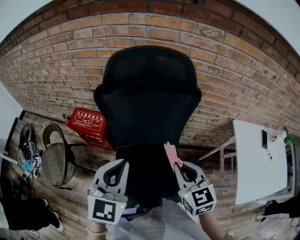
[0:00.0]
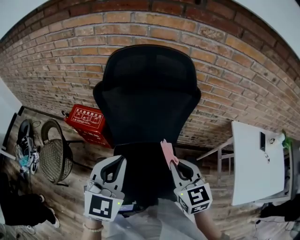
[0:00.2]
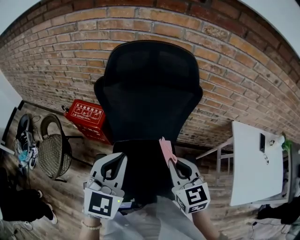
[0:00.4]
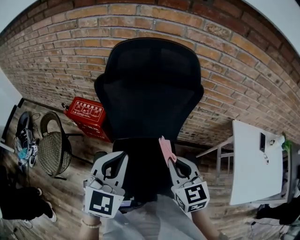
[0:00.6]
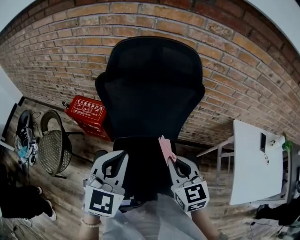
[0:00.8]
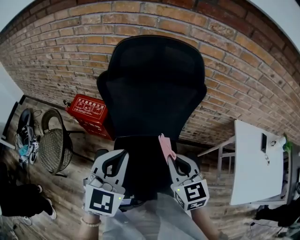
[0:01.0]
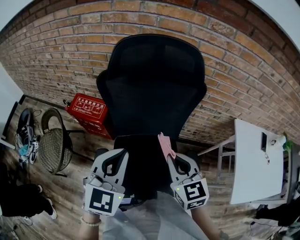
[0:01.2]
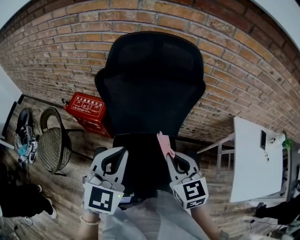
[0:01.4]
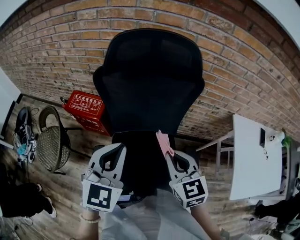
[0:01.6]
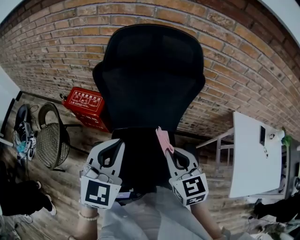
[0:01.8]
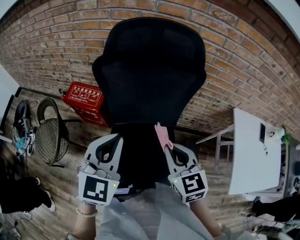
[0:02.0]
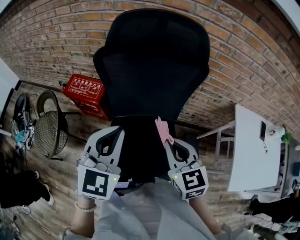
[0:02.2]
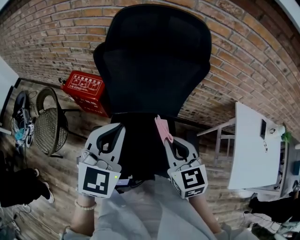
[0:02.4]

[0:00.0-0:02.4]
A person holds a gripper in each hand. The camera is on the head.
0:00.0 to 0:02.4: The grippers move only a little.

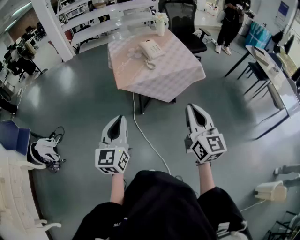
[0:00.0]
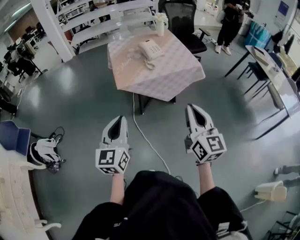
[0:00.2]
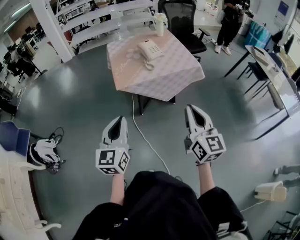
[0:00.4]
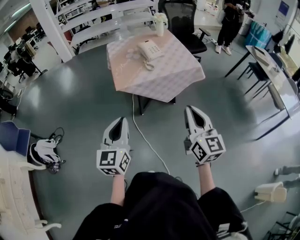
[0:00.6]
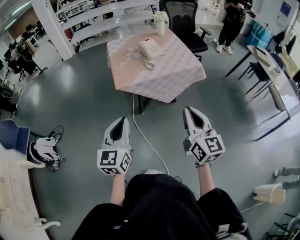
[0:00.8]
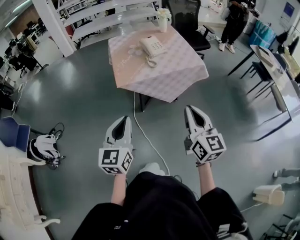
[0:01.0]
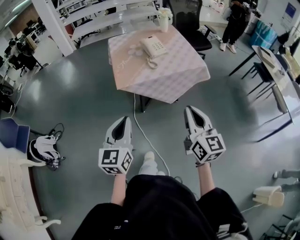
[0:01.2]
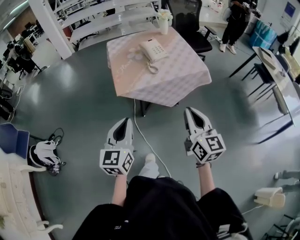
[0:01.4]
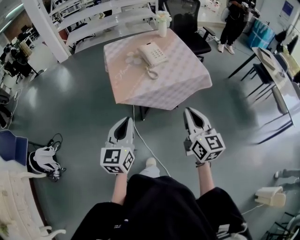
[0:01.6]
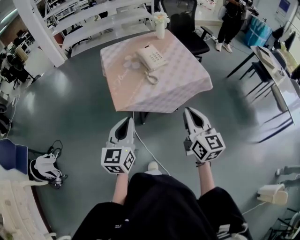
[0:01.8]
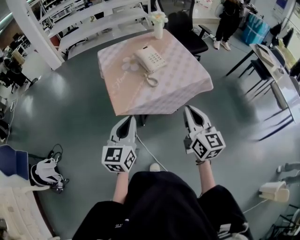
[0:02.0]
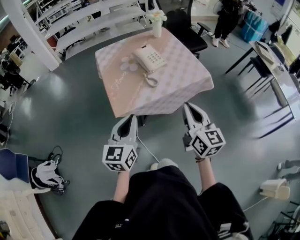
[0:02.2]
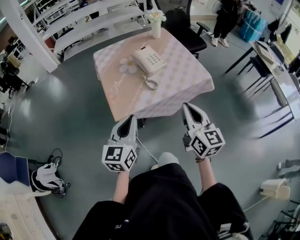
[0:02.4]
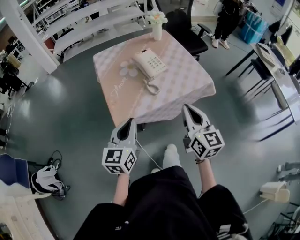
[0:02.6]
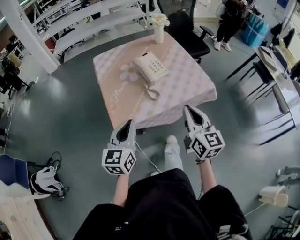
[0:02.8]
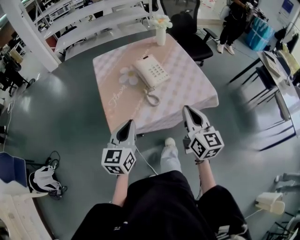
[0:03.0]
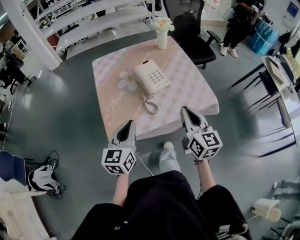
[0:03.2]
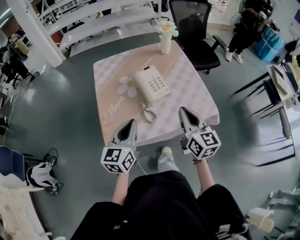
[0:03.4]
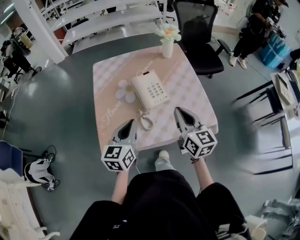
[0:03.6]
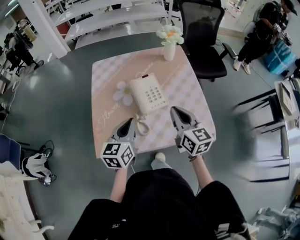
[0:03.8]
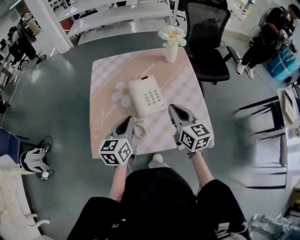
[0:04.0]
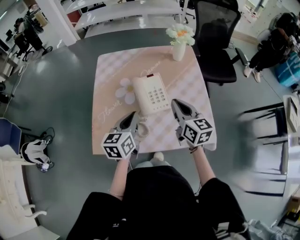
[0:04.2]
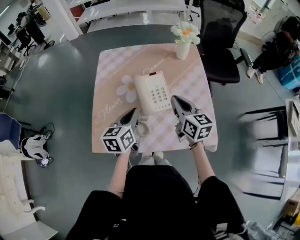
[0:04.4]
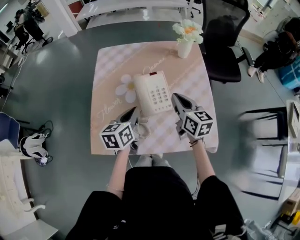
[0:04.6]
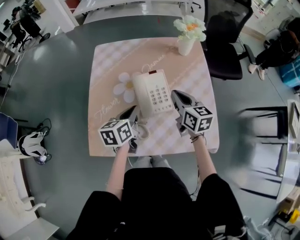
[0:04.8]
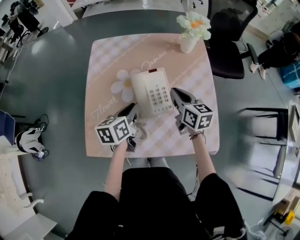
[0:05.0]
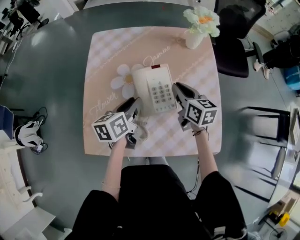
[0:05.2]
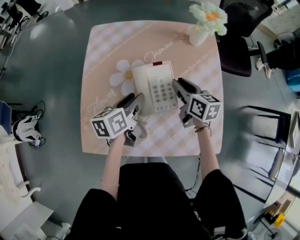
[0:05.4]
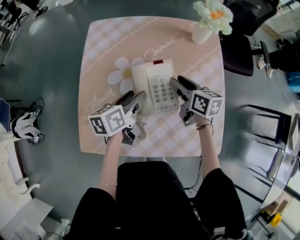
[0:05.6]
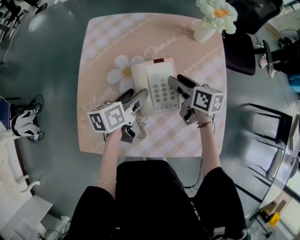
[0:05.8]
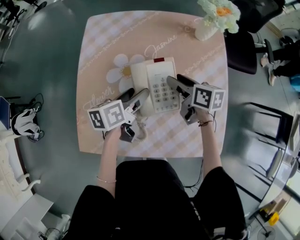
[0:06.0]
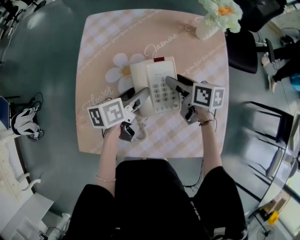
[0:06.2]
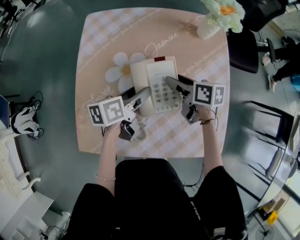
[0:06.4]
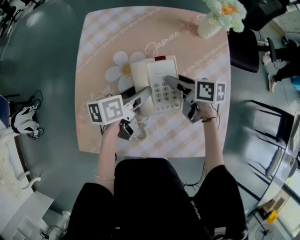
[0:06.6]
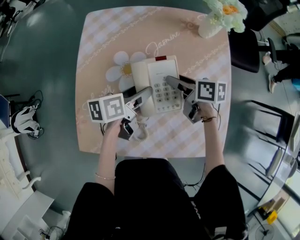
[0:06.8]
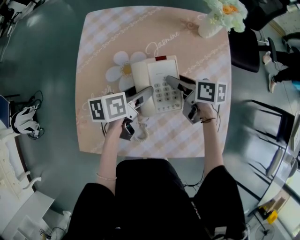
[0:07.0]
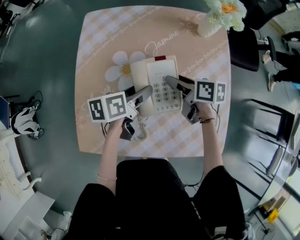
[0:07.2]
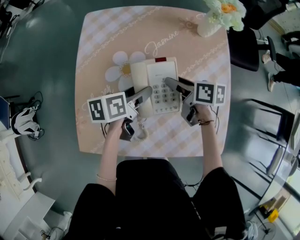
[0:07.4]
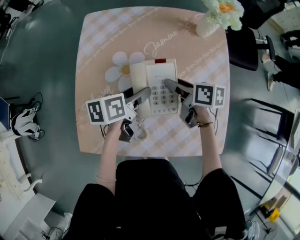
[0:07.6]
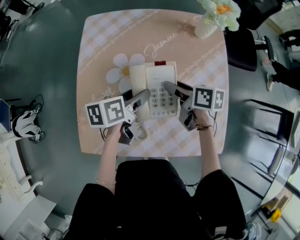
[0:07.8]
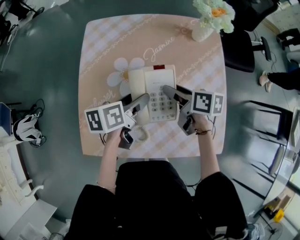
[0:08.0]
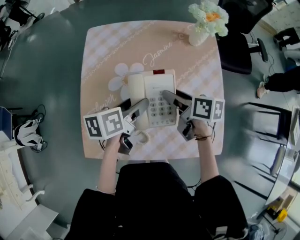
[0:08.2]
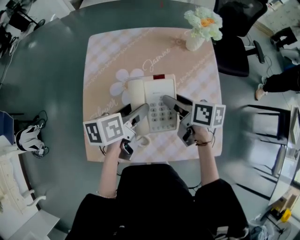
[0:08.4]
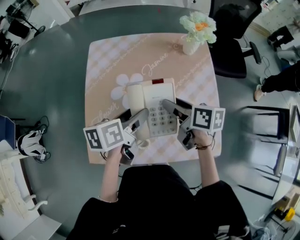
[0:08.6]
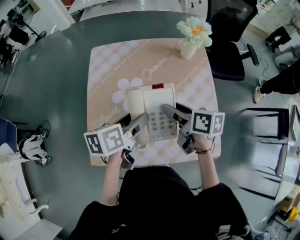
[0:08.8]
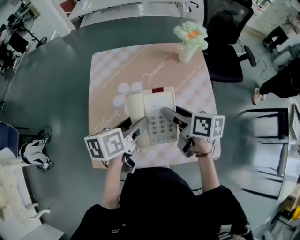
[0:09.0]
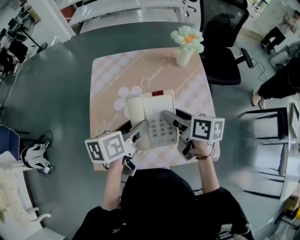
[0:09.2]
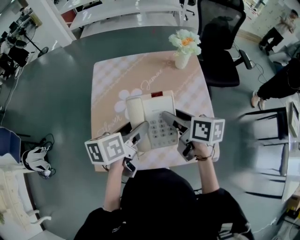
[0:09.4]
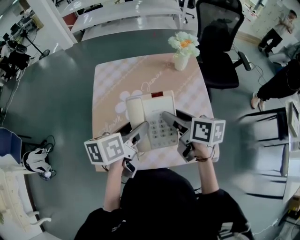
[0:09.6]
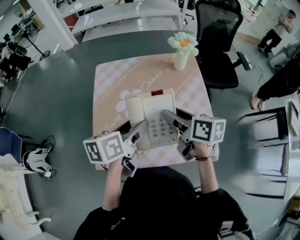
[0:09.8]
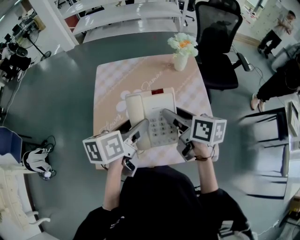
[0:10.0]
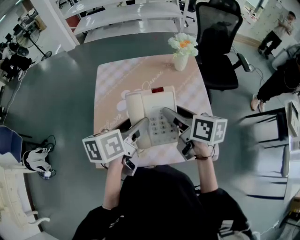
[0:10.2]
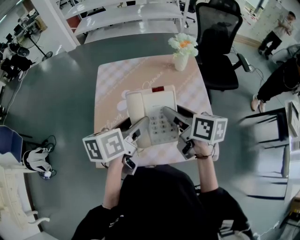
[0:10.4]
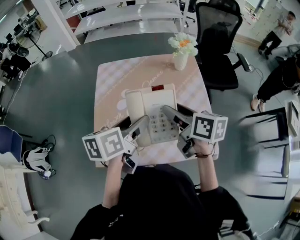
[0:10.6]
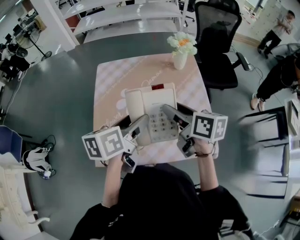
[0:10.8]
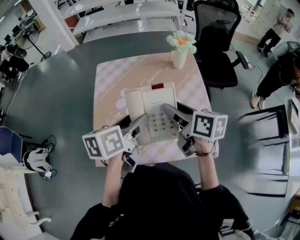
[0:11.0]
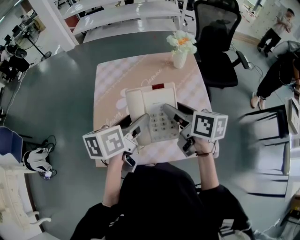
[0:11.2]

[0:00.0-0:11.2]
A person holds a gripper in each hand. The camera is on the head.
0:00.0 to 0:01.6: The right gripper shifts some 15 cm forward and downward. Meanwhile the left gripper moves forward, some 15 cm.
0:01.6 to 0:03.2: The two grippers go roughly 25 cm forward.
0:03.2 to 0:04.8: The right gripper travels forward by approximately 30 cm, and swivels roughly 30 degrees; the left gripper goes about 25 cm forward and downward, and swivels approximately 30 degrees.
0:04.8 to 0:06.4: The left gripper shifts roughly 10 cm forward and downward, changes its angle by approximately 20 degrees, and opens its fingers, while the right gripper goes approximately 15 cm downward and forward, swivels about 30 degrees, and opens.
0:06.4 to 0:08.0: The grippers stay close to where they were, moving slightly.
0:08.0 to 0:09.6: Both grippers move upward and backward, approximately 20 cm.
0:09.6 to 0:11.2: The grippers move only a little.

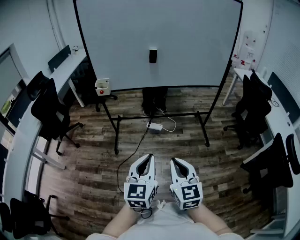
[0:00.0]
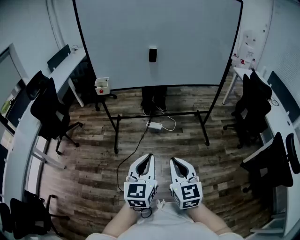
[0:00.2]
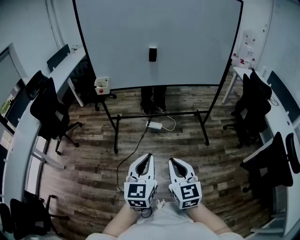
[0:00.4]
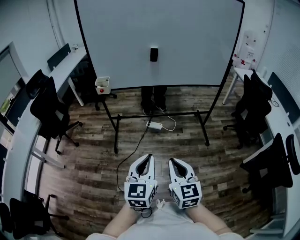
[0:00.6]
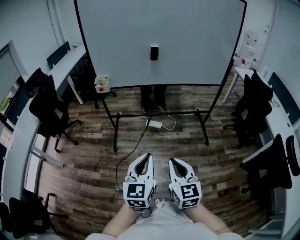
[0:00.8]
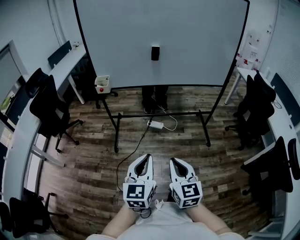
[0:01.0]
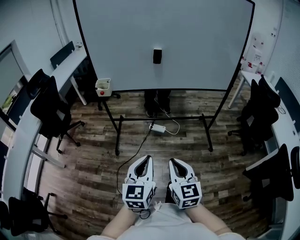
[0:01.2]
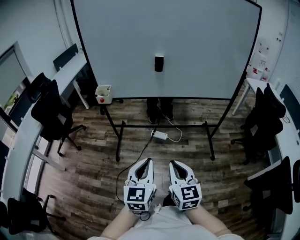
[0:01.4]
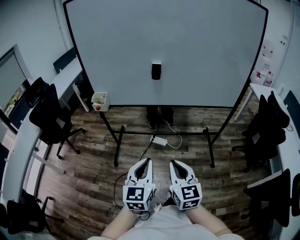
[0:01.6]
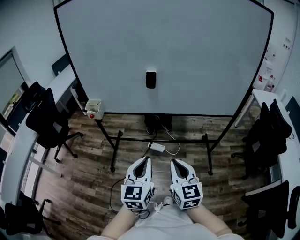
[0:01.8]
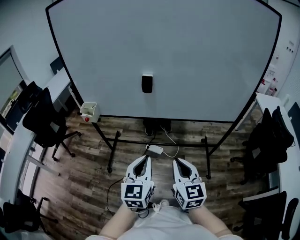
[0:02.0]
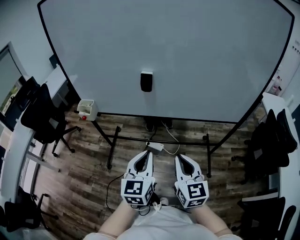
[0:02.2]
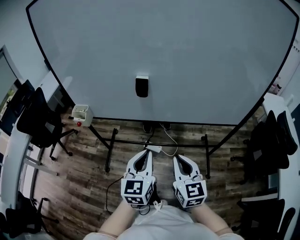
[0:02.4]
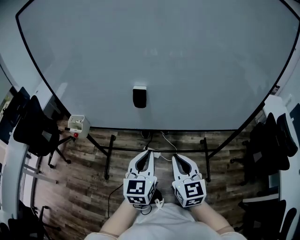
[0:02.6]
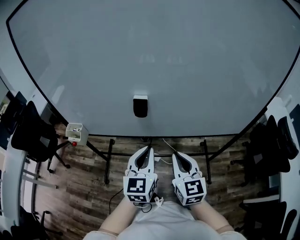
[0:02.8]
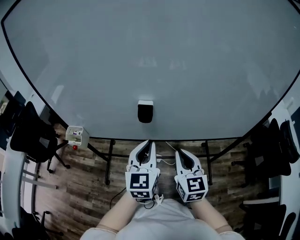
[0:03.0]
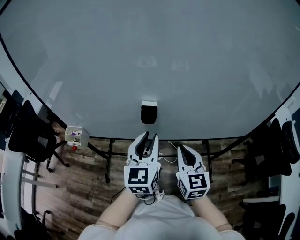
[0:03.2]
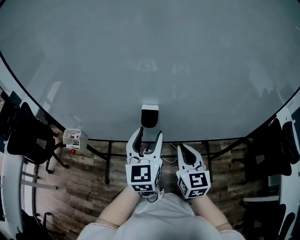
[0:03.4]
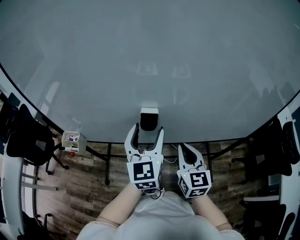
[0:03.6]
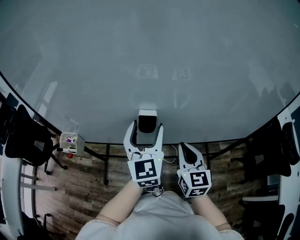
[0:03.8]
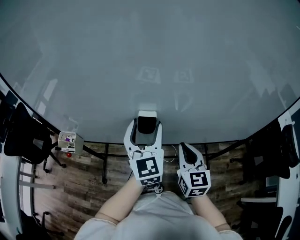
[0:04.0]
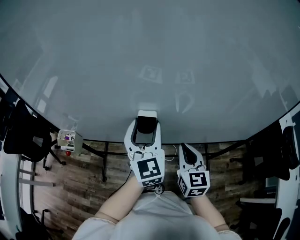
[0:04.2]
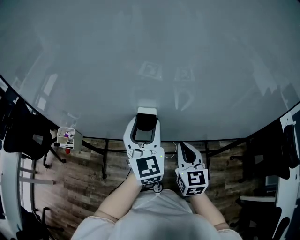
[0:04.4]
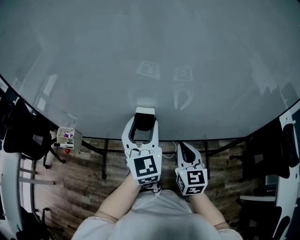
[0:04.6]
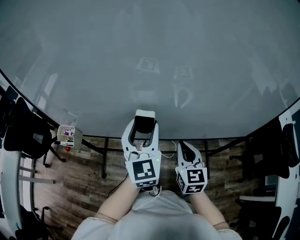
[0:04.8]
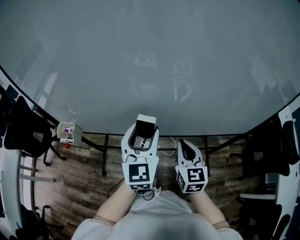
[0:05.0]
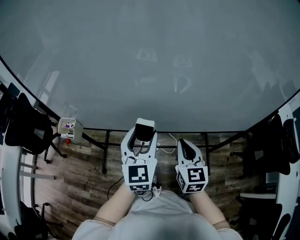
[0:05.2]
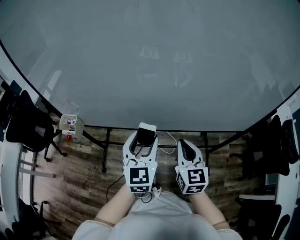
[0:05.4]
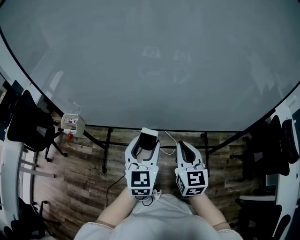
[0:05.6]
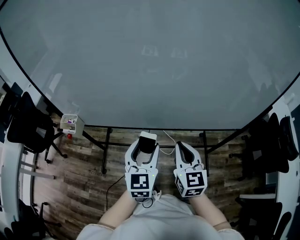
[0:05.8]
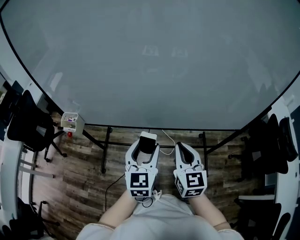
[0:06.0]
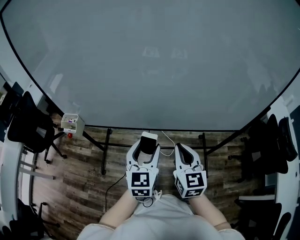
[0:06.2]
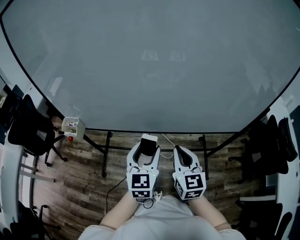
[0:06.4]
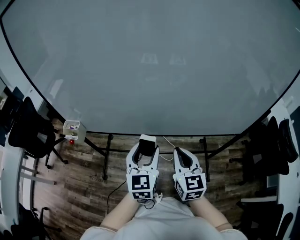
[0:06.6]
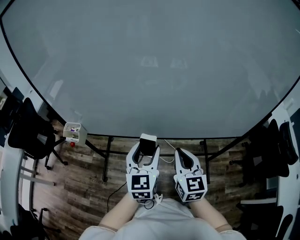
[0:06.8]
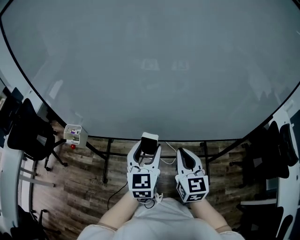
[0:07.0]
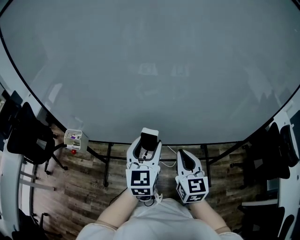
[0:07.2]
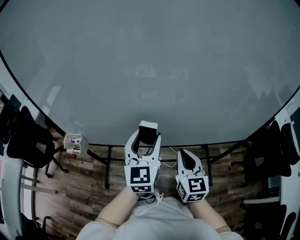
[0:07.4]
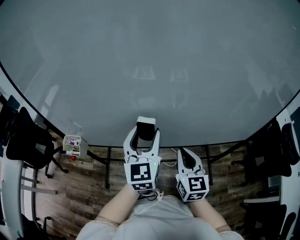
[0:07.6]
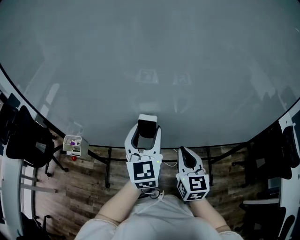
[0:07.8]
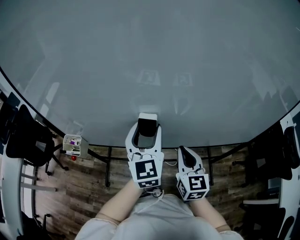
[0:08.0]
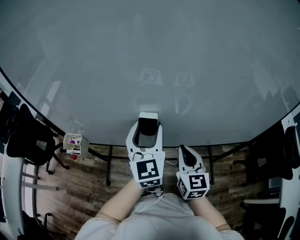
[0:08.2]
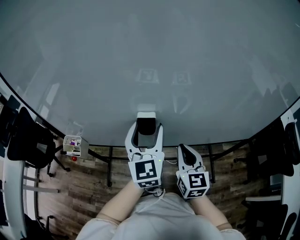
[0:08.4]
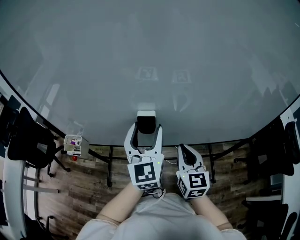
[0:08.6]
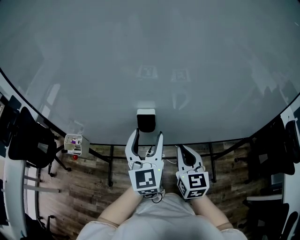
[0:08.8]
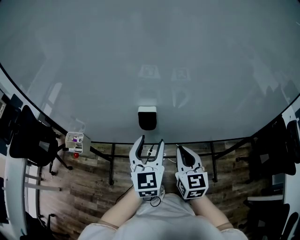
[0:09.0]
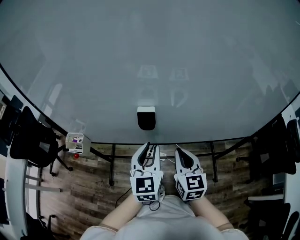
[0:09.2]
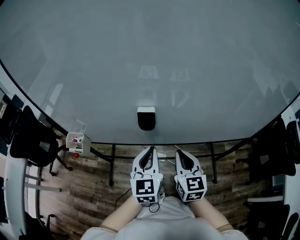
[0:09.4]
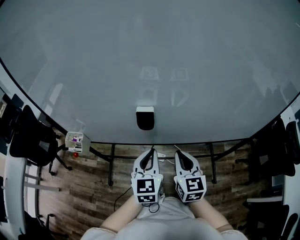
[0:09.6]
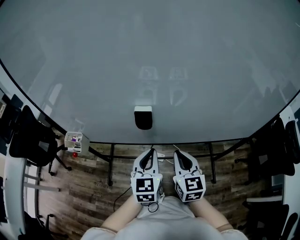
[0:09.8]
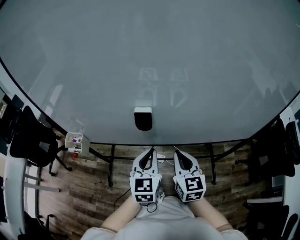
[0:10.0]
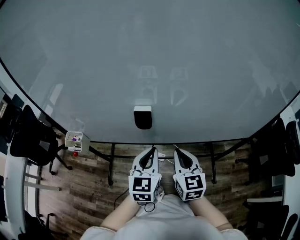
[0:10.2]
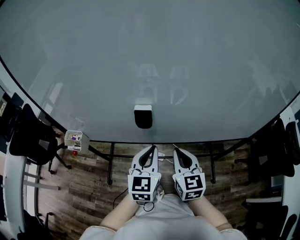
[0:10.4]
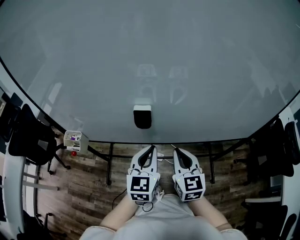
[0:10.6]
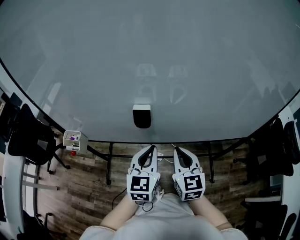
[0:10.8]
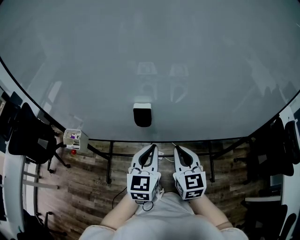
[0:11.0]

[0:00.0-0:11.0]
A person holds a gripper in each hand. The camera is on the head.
0:00.0 to 0:01.6: Both grippers move forward, some 20 cm.
0:01.6 to 0:03.2: The grippers both shift forward by some 40 cm.
0:03.2 to 0:04.8: The left gripper moves forward, roughly 5 cm, and opens. Meanwhile the right gripper moves about 5 cm.
0:04.8 to 0:06.2: The right gripper heads backward, covering approximately 10 cm. Meanwhile the left gripper travels backward and downward by roughly 15 cm.
0:06.2 to 0:07.8: The right gripper heads forward, covering approximately 10 cm. Meanwhile the left gripper shifts about 15 cm forward and upward.
0:07.8 to 0:09.4: The left gripper shifts about 10 cm downward and backward, and closes its fingers.
0:09.4 to 0:11.0: There are only small adjustments of the grippers.
